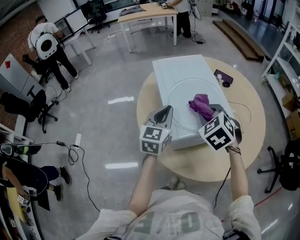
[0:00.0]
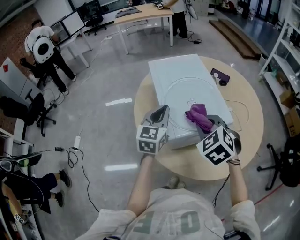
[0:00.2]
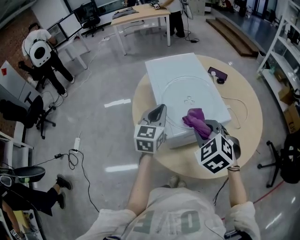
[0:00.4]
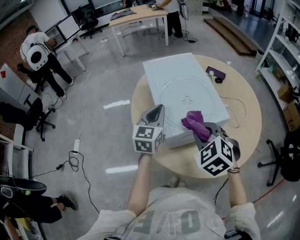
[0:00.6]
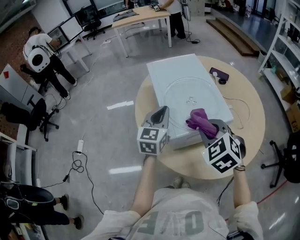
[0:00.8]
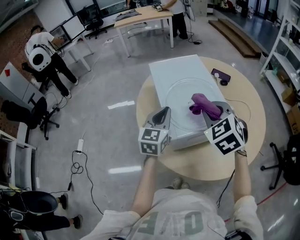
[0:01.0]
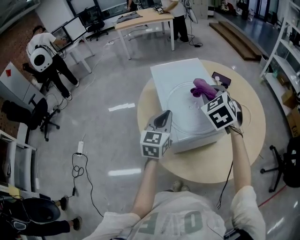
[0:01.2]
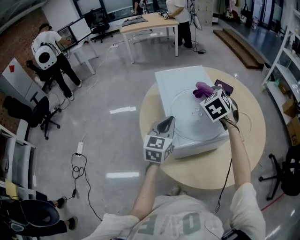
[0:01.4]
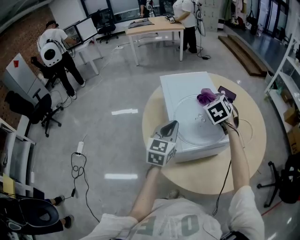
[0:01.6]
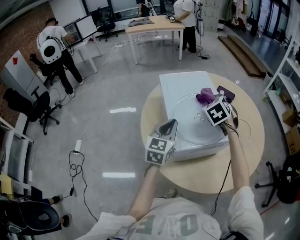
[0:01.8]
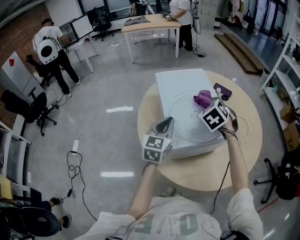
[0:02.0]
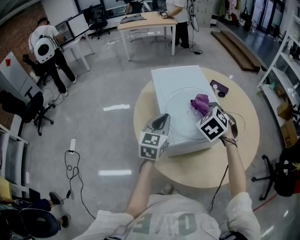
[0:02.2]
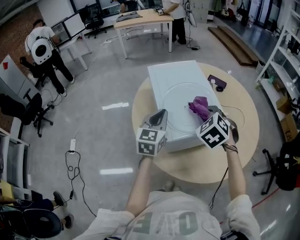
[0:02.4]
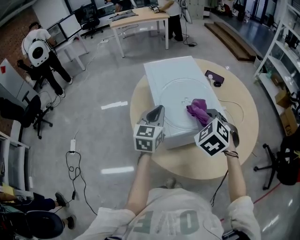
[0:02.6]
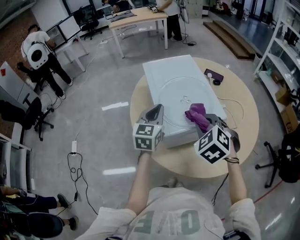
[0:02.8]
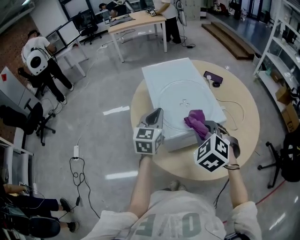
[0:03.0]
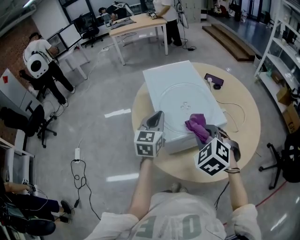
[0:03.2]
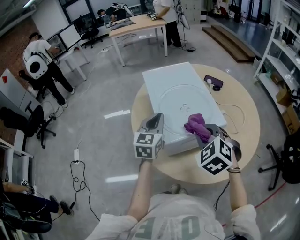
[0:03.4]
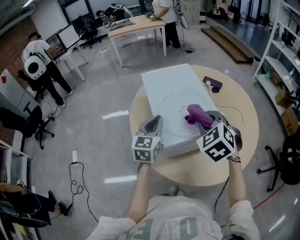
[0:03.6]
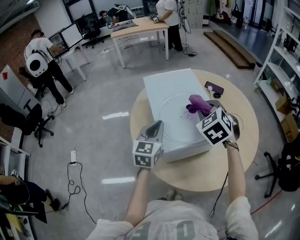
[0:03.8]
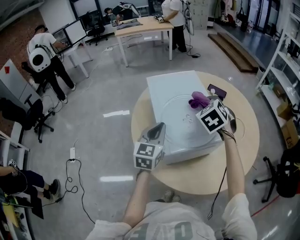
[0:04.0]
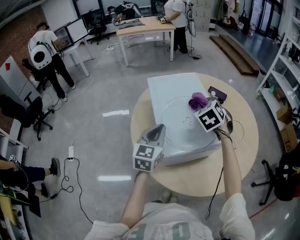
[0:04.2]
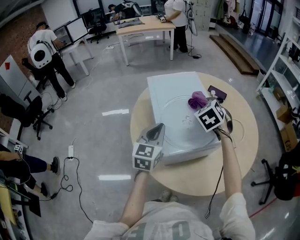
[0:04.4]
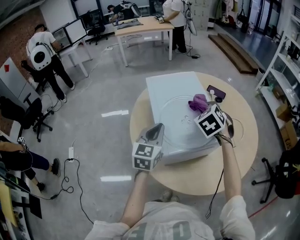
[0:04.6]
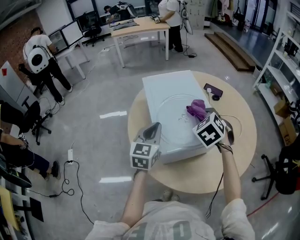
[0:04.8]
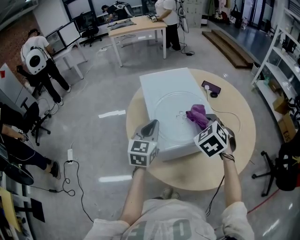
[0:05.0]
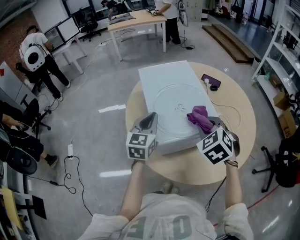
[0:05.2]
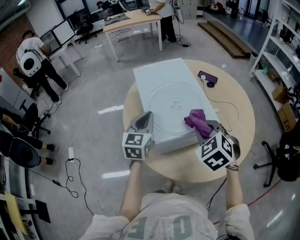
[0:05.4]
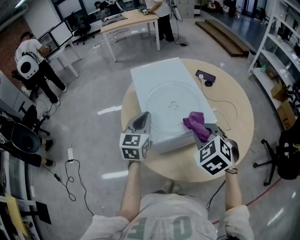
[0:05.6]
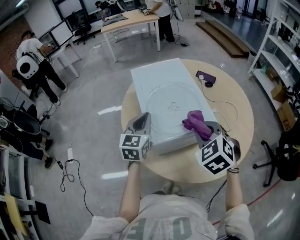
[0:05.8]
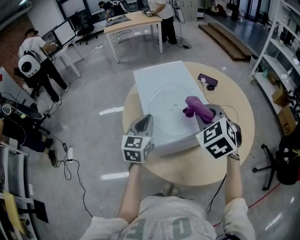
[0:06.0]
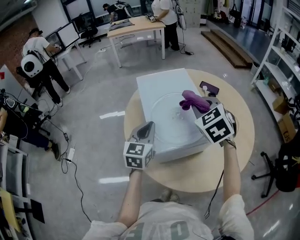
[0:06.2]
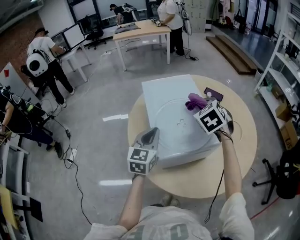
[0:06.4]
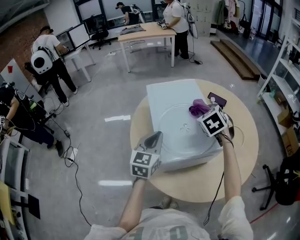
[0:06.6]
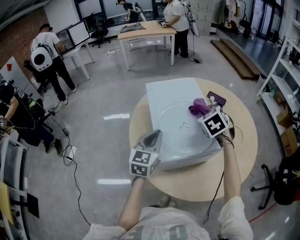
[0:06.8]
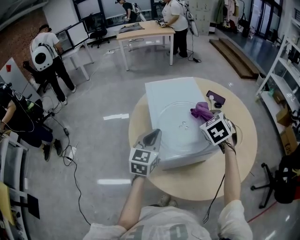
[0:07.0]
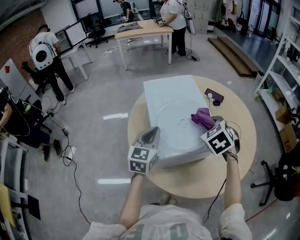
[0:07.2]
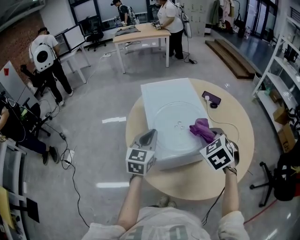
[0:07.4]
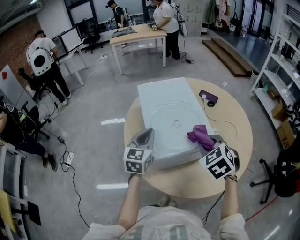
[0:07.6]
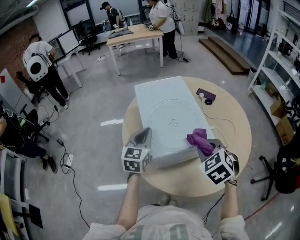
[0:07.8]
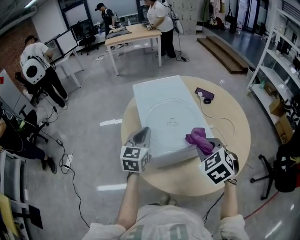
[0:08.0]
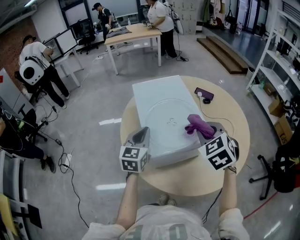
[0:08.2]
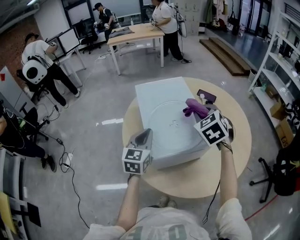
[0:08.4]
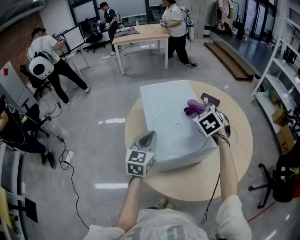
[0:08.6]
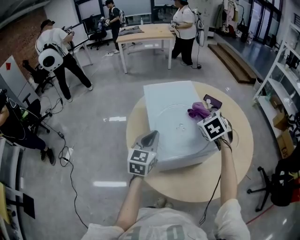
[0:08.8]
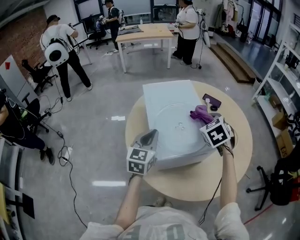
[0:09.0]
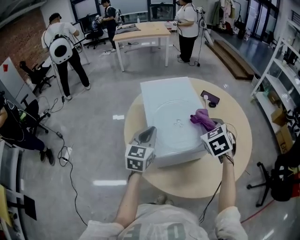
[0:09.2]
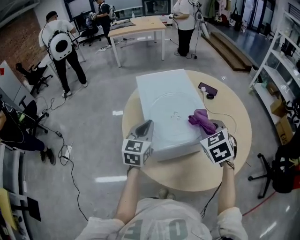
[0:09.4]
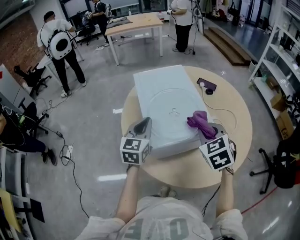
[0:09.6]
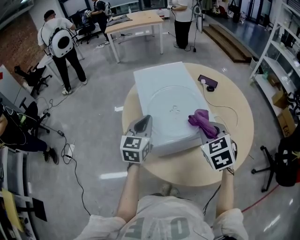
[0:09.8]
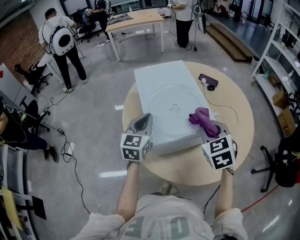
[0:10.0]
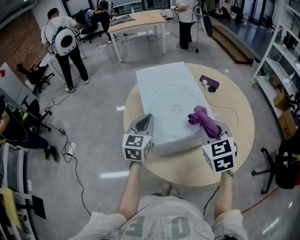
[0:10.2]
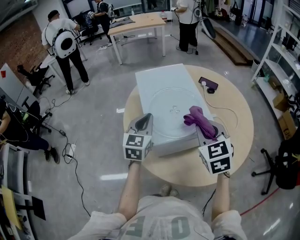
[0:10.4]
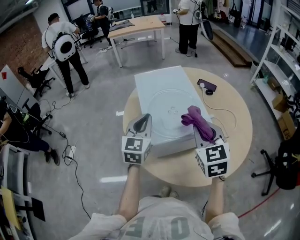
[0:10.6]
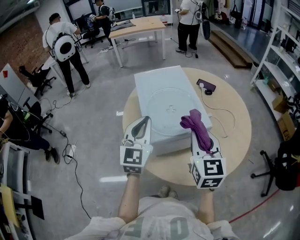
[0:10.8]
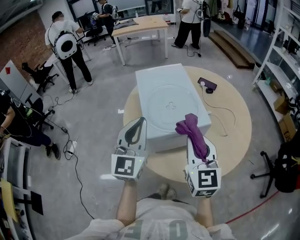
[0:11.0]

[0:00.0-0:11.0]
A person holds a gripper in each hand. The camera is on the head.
0:00.0 to 0:01.6: The right gripper shifts roughly 15 cm forward.
0:01.6 to 0:03.2: The right gripper goes approximately 20 cm backward.
0:03.2 to 0:04.8: The right gripper shifts about 15 cm forward.
0:04.8 to 0:06.2: The right gripper is displaced upward by about 5 cm, and moves roughly 15 cm backward and comes back.
0:06.2 to 0:07.8: The right gripper heads backward and downward, covering about 15 cm.
0:07.8 to 0:09.4: The right gripper travels forward and back again, about 20 cm each way.
0:09.4 to 0:11.0: The left gripper moves upward and backward, approximately 15 cm, and rotates approximately 20 degrees. Meanwhile the right gripper heads backward and upward, covering about 15 cm, and points its fingers roughly 30 degrees further upward.

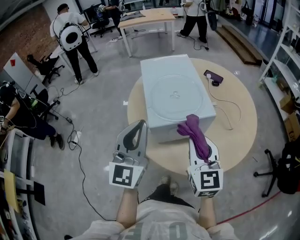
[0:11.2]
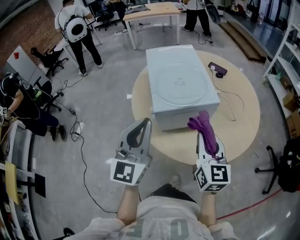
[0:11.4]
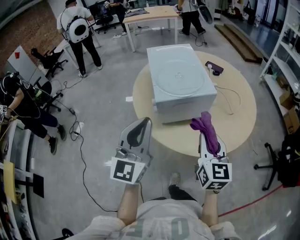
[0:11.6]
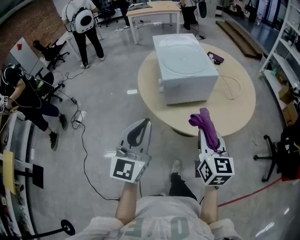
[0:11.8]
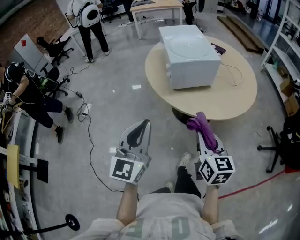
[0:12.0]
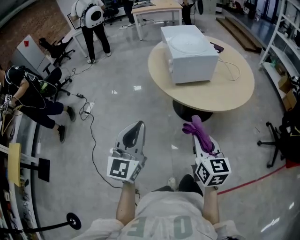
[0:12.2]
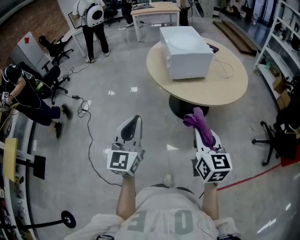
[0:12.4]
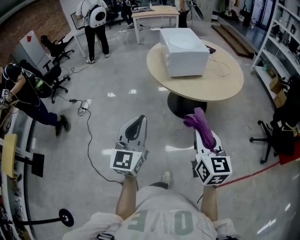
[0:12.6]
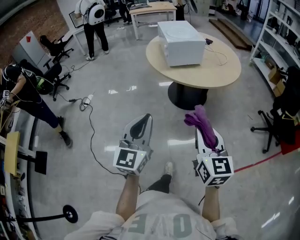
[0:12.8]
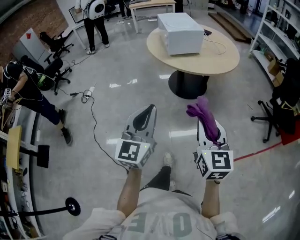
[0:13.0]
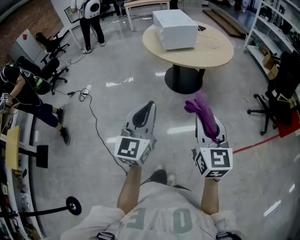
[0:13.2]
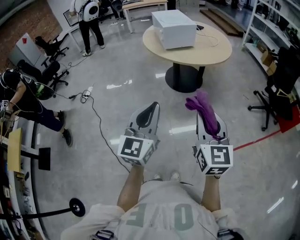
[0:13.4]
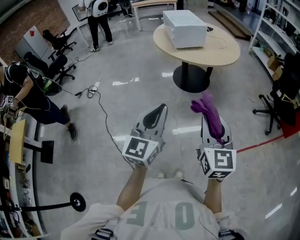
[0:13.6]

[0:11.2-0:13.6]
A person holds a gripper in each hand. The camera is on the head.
0:11.2 to 0:12.4: The grippers both shift backward by some 40 cm.
0:12.4 to 0:13.6: The grippers both shift backward by about 30 cm.

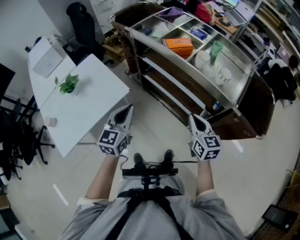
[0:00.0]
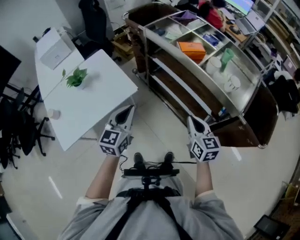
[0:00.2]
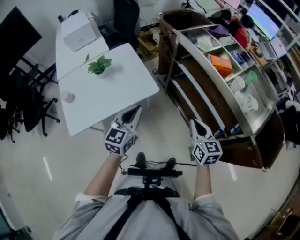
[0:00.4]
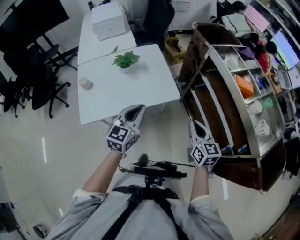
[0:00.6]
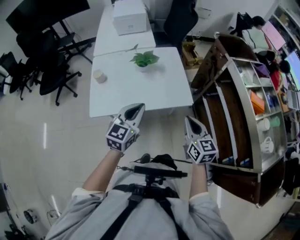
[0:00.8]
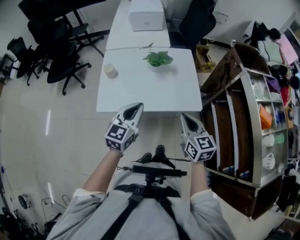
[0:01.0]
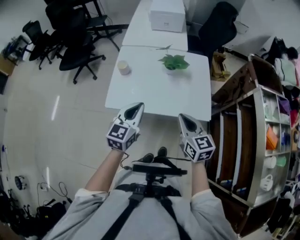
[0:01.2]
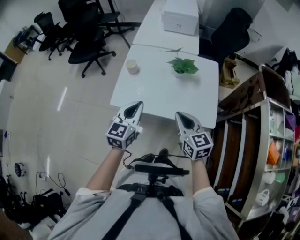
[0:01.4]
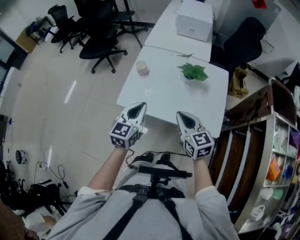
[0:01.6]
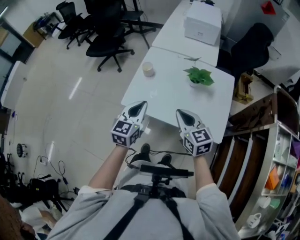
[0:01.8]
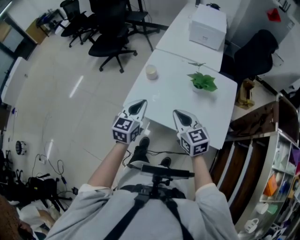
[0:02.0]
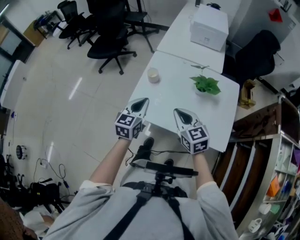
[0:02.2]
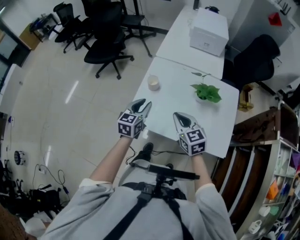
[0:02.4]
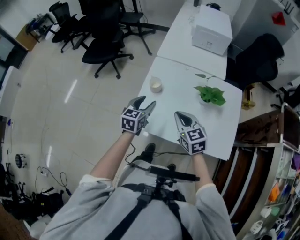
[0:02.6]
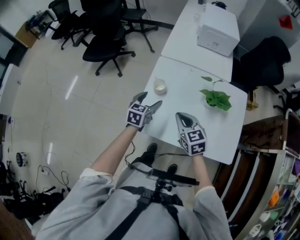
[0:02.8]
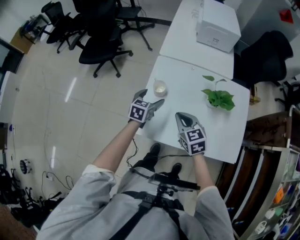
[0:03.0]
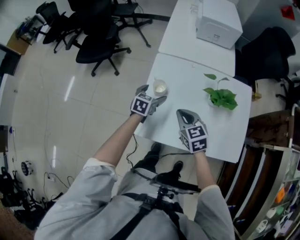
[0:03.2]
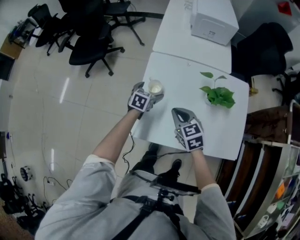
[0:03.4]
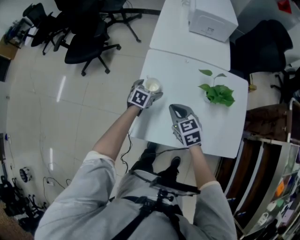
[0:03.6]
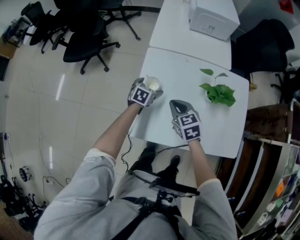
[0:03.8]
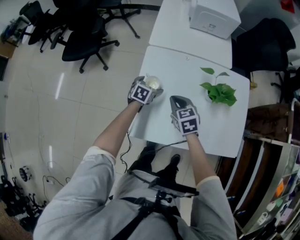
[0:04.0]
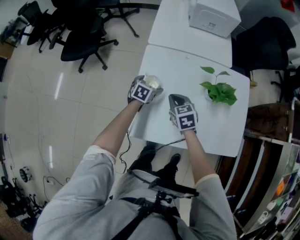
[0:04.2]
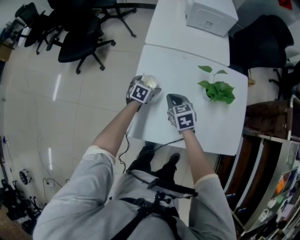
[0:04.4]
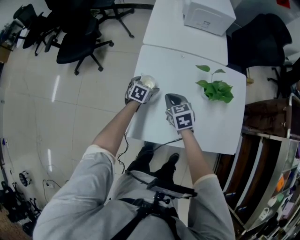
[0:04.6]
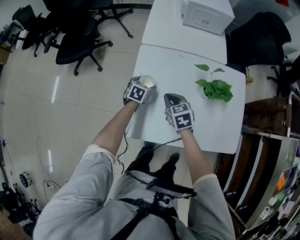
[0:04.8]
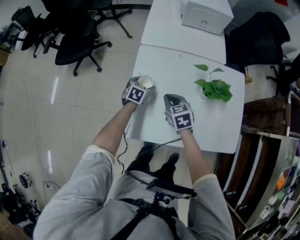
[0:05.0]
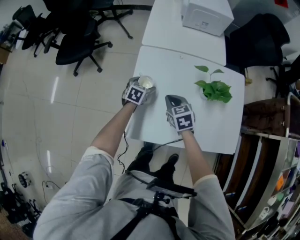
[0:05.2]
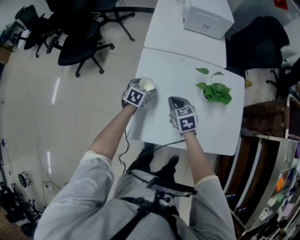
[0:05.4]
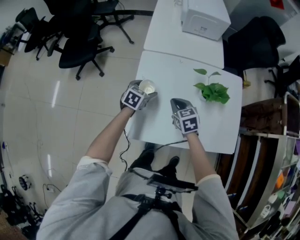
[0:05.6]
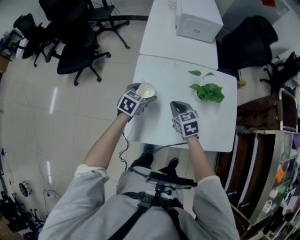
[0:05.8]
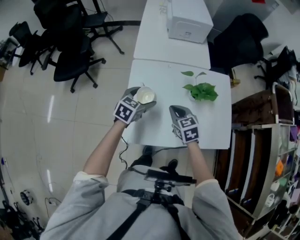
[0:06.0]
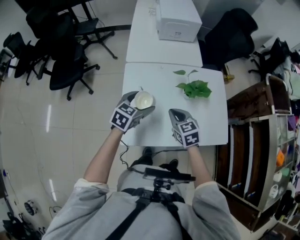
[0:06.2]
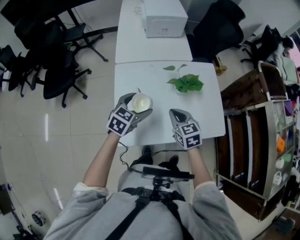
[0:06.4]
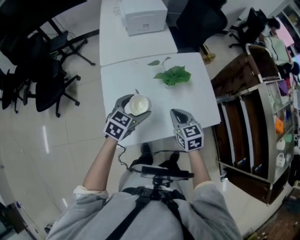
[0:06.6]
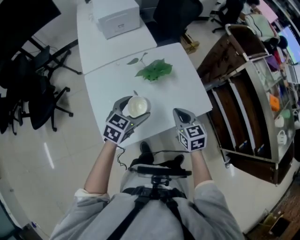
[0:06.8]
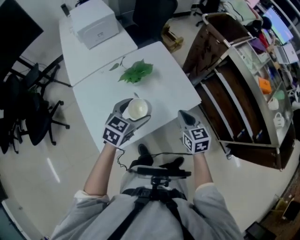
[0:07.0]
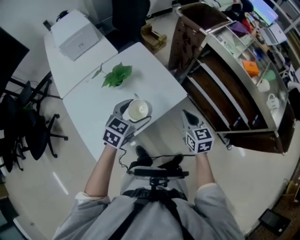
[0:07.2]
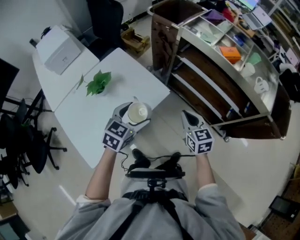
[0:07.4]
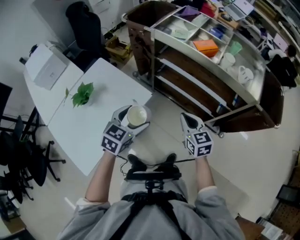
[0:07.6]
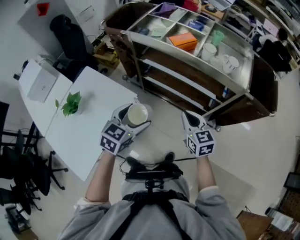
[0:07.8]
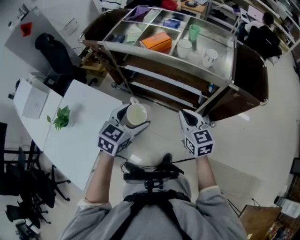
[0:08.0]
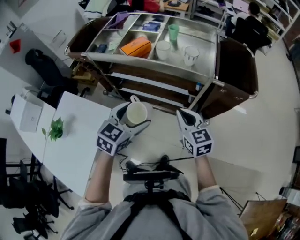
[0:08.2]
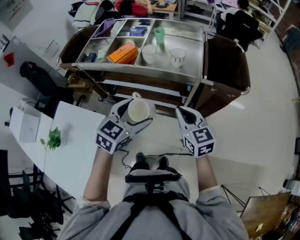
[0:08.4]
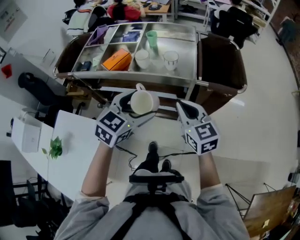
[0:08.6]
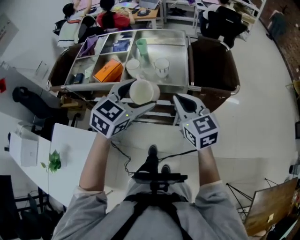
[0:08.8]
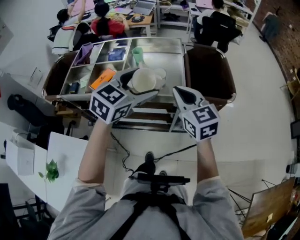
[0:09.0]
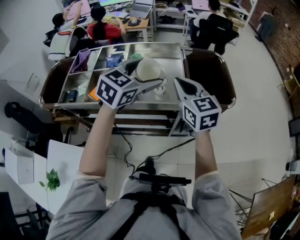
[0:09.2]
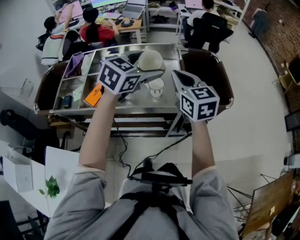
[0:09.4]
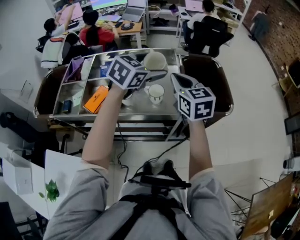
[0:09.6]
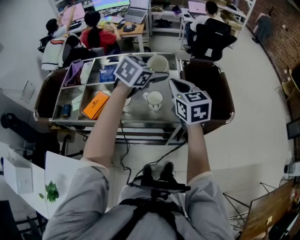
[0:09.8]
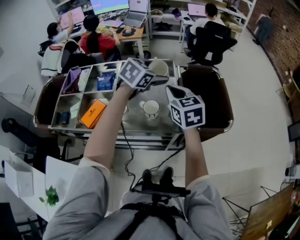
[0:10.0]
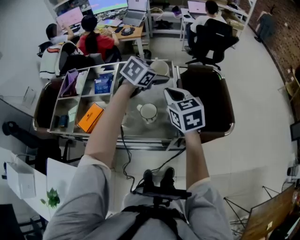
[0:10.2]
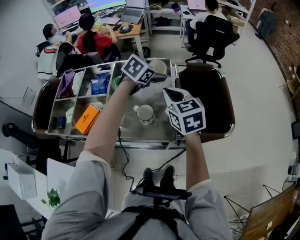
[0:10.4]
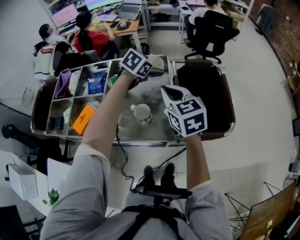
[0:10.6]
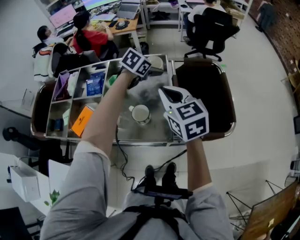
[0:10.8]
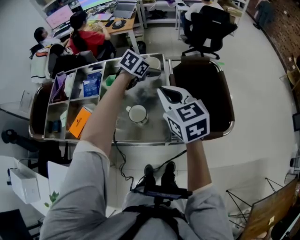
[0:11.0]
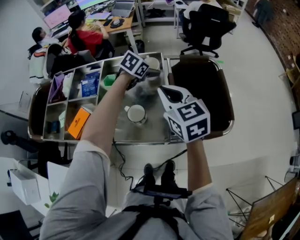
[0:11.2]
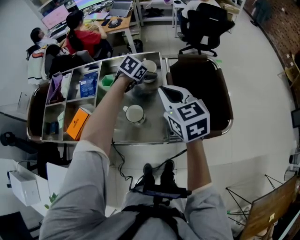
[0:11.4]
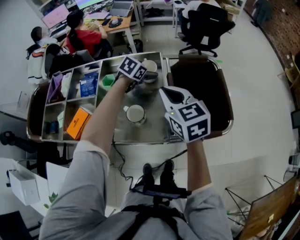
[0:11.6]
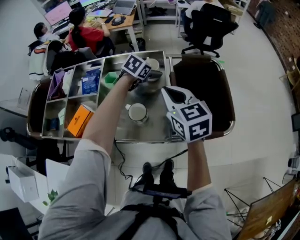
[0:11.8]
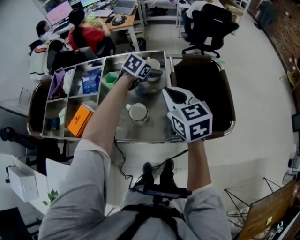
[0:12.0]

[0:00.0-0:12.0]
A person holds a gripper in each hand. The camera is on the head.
0:00.0 to 0:01.6: Both grippers are carried some 50 cm. The left gripper changes its angle by about 50 degrees, while the right gripper turns by some 70 degrees.
0:01.6 to 0:03.0: The right gripper moves forward, to the left and downward, about 30 cm. Meanwhile the left gripper travels forward and downward by some 35 cm, swivels approximately 20 degrees, and opens.
0:03.0 to 0:04.4: The right gripper heads forward and downward, covering approximately 15 cm, while the left gripper shifts about 15 cm downward and forward.
0:04.4 to 0:06.0: The left gripper goes roughly 20 cm upward, and turns by roughly 20 degrees. The right gripper heads upward, backward and to the right, covering approximately 10 cm.
0:06.0 to 0:07.6: The pair of grippers is taken approximately 60 cm. The left gripper changes its angle by approximately 50 degrees, while the right gripper swivels approximately 60 degrees.
0:07.6 to 0:09.0: The left gripper shifts by approximately 50 cm, and rotates about 50 degrees. Meanwhile the right gripper changes place by some 40 cm, and turns by roughly 30 degrees.
0:09.0 to 0:10.4: The right gripper shifts approximately 20 cm forward. The left gripper moves forward, roughly 35 cm, and changes its angle by about 20 degrees.
0:10.4 to 0:12.0: The left gripper is displaced downward and forward by approximately 10 cm.
